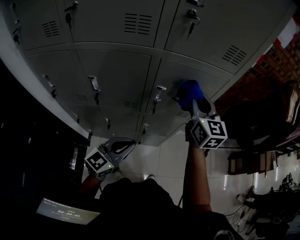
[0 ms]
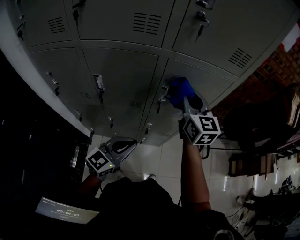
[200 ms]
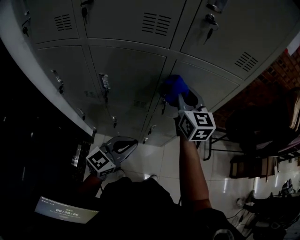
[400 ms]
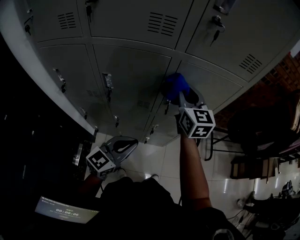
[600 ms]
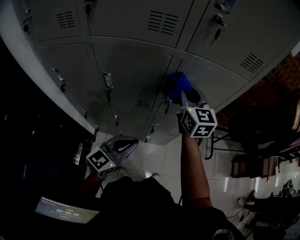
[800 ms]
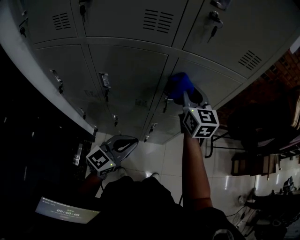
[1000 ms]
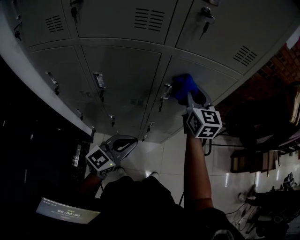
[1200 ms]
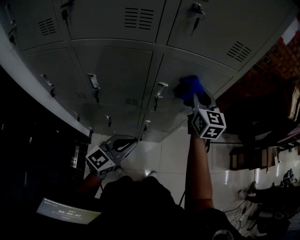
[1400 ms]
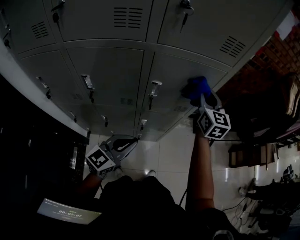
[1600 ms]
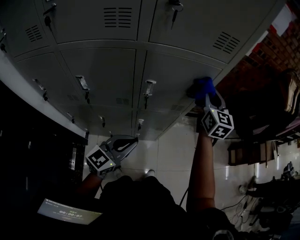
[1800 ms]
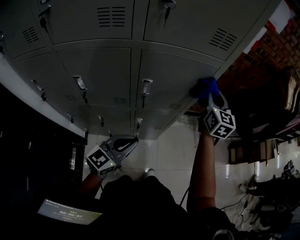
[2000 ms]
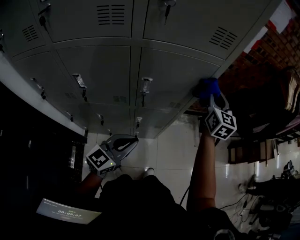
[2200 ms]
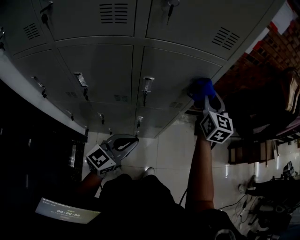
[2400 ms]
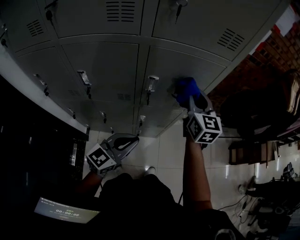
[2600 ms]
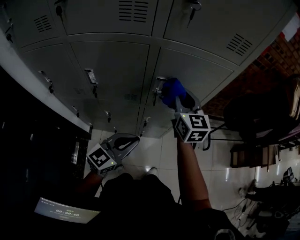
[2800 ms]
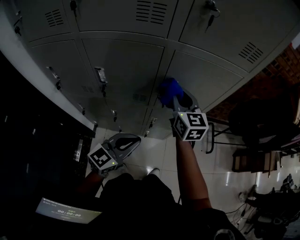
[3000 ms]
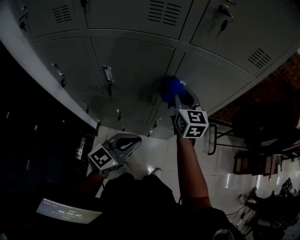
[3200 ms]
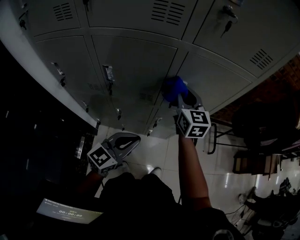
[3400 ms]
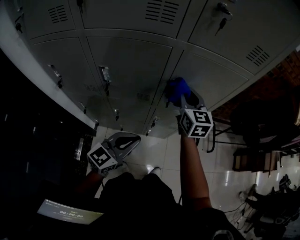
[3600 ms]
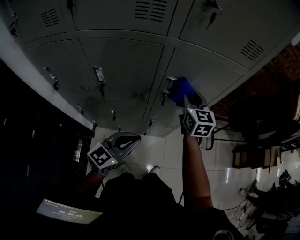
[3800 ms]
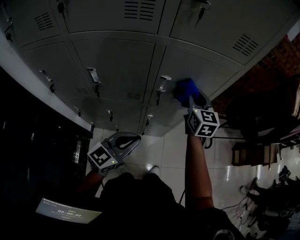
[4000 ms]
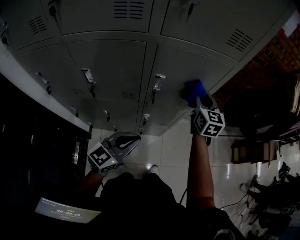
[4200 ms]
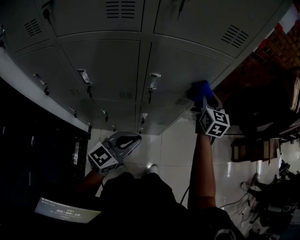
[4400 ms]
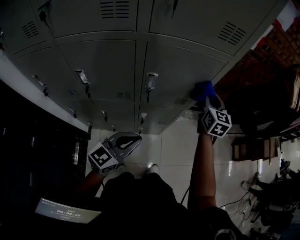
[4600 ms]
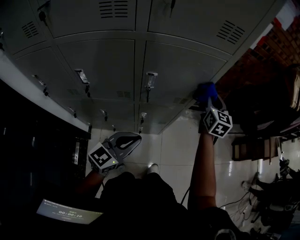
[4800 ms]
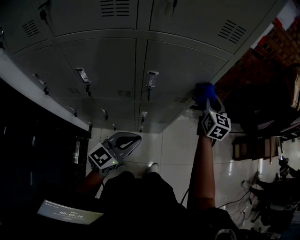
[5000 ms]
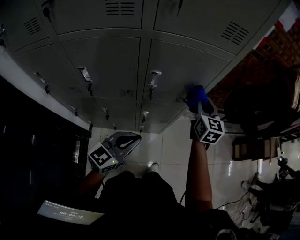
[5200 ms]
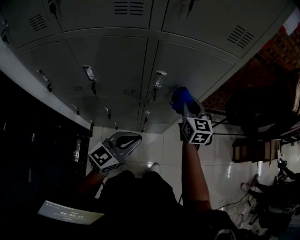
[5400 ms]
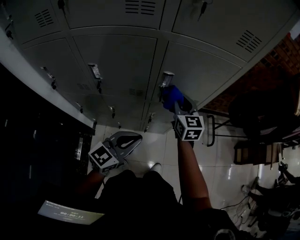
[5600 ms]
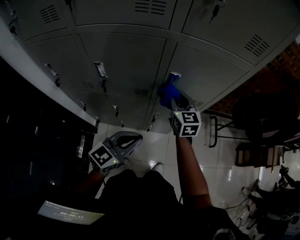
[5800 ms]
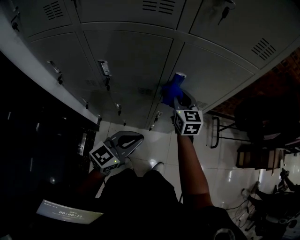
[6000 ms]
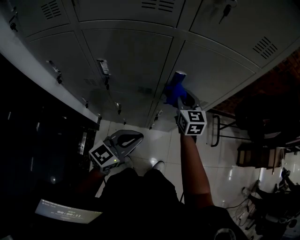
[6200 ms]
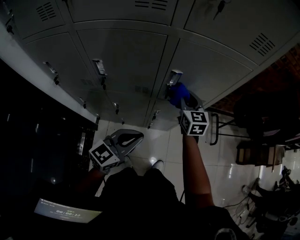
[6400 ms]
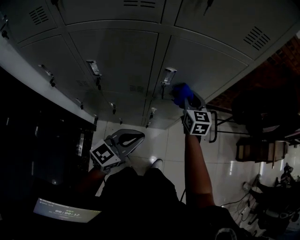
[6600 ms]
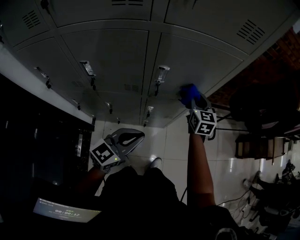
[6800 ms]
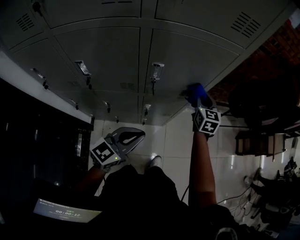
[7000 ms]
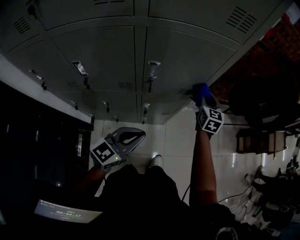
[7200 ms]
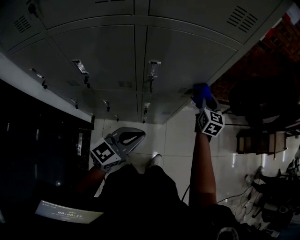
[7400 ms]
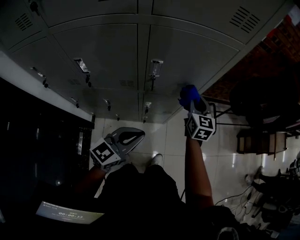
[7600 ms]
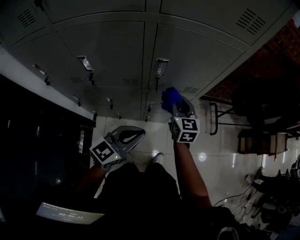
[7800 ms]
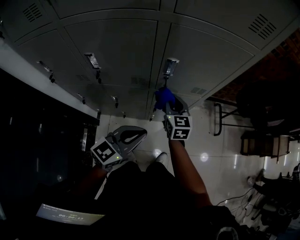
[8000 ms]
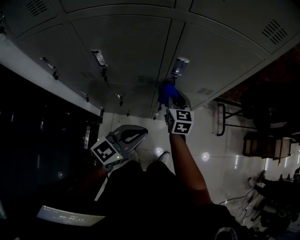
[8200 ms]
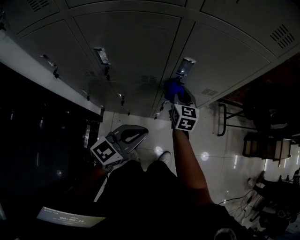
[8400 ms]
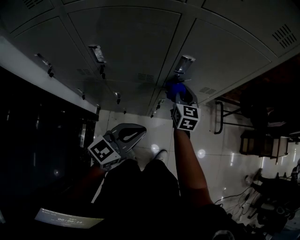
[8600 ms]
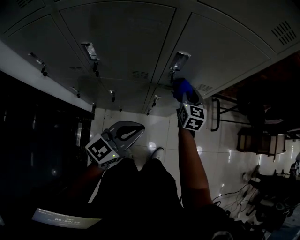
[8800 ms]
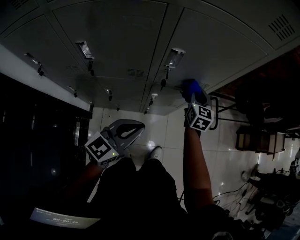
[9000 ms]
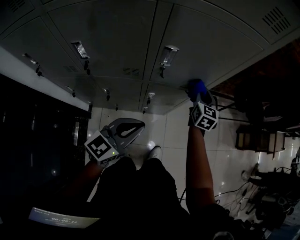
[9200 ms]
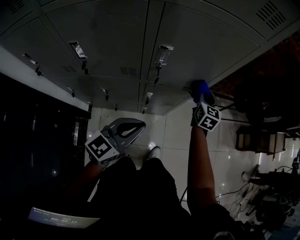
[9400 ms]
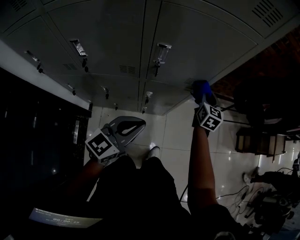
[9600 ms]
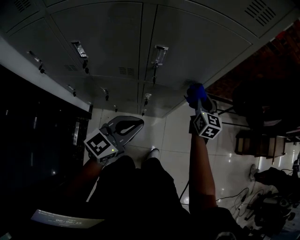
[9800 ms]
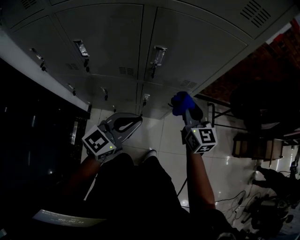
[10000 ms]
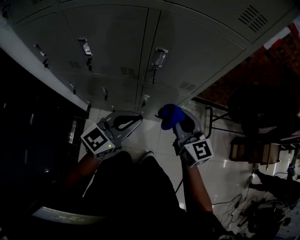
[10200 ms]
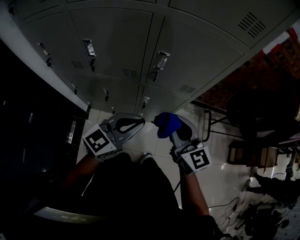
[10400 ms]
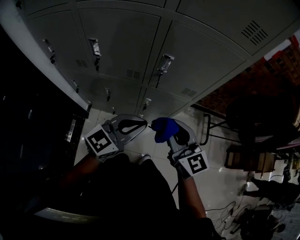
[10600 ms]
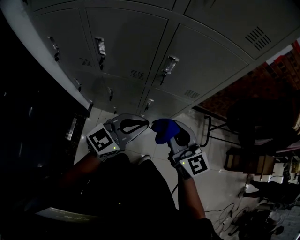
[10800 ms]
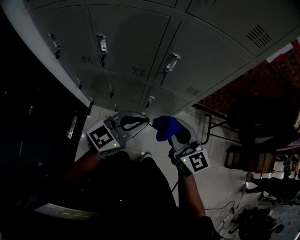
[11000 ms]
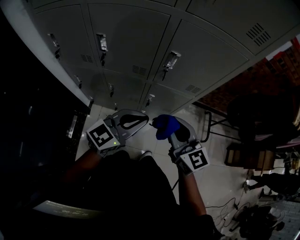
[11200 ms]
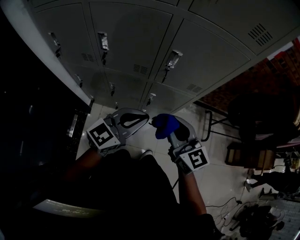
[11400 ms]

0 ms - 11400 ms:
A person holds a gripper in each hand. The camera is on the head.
0 ms - 1400 ms: The right gripper travels to the left and back again, roughly 10 cm each way.
1400 ms - 2800 ms: The right gripper moves about 15 cm to the right and comes back.
2800 ms - 4200 ms: The right gripper goes about 10 cm to the right and forward.
4200 ms - 5600 ms: The right gripper travels to the left, backward and downward by some 15 cm.
5600 ms - 7200 ms: The right gripper is displaced to the right and forward by roughly 20 cm, and rotates some 20 degrees. Meanwhile the left gripper heads to the right, covering roughly 5 cm.
7200 ms - 8600 ms: The left gripper moves to the left, approximately 10 cm. The right gripper shifts approximately 20 cm to the left.
8600 ms - 10000 ms: The right gripper is displaced to the right and upward by approximately 15 cm; the left gripper shifts some 5 cm to the right.
10000 ms - 11400 ms: The left gripper changes place by approximately 5 cm, while the right gripper goes roughly 20 cm backward, to the left and upward.

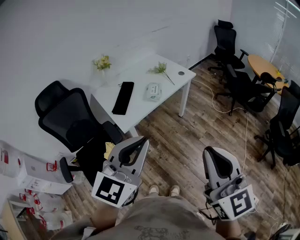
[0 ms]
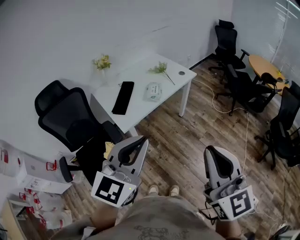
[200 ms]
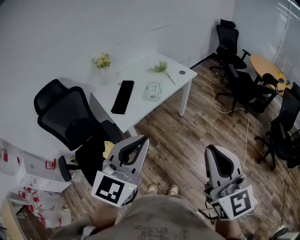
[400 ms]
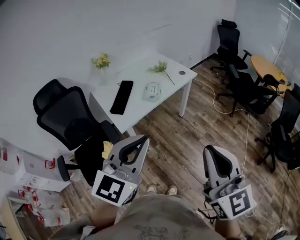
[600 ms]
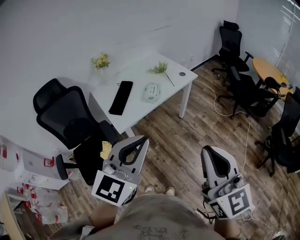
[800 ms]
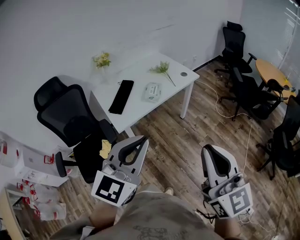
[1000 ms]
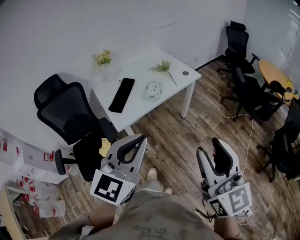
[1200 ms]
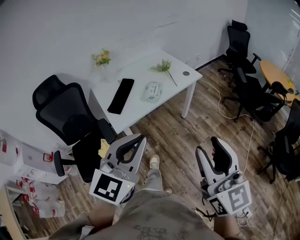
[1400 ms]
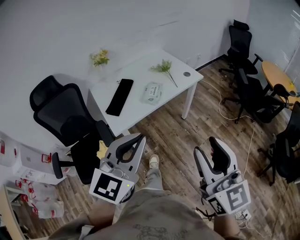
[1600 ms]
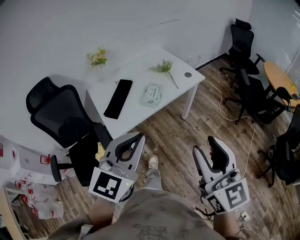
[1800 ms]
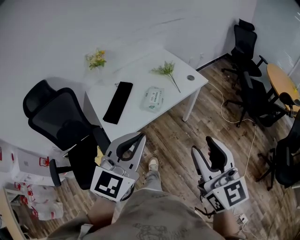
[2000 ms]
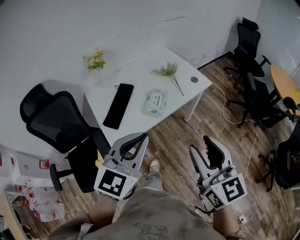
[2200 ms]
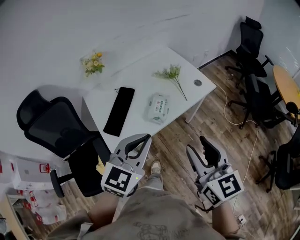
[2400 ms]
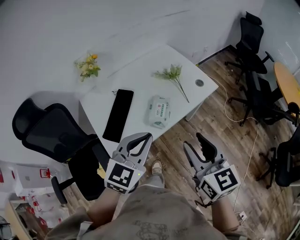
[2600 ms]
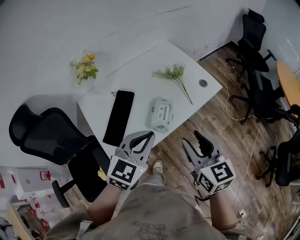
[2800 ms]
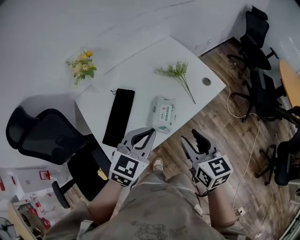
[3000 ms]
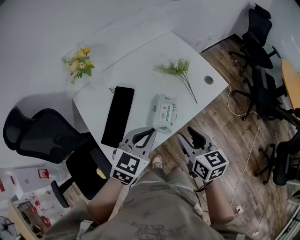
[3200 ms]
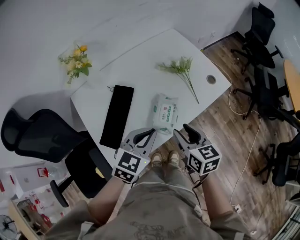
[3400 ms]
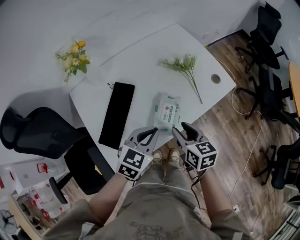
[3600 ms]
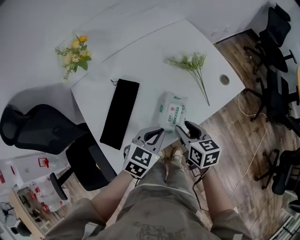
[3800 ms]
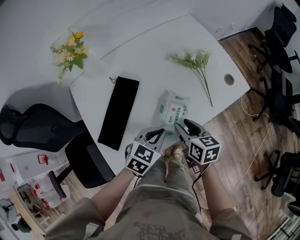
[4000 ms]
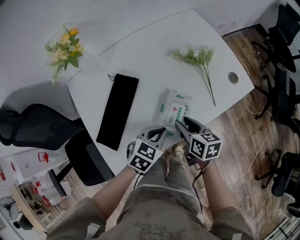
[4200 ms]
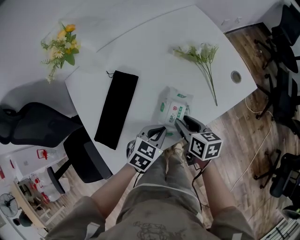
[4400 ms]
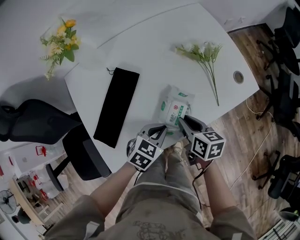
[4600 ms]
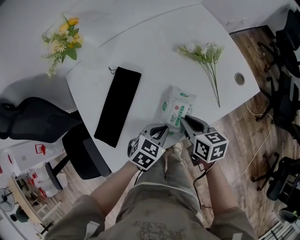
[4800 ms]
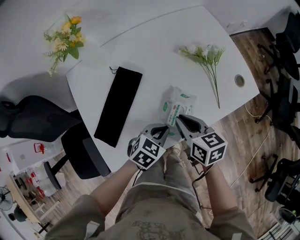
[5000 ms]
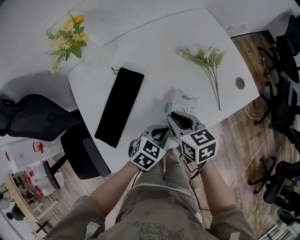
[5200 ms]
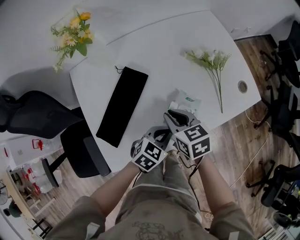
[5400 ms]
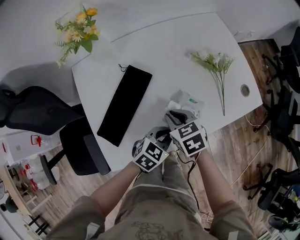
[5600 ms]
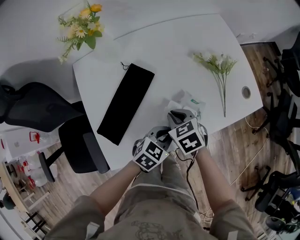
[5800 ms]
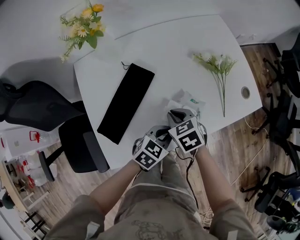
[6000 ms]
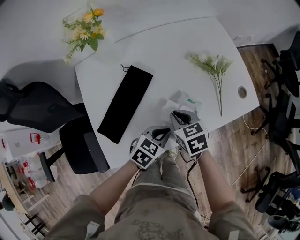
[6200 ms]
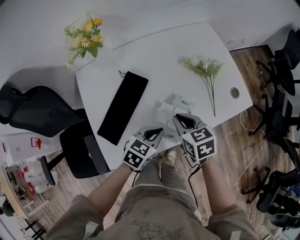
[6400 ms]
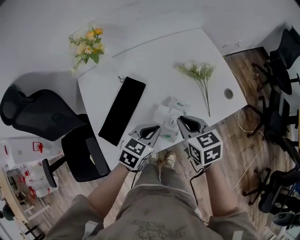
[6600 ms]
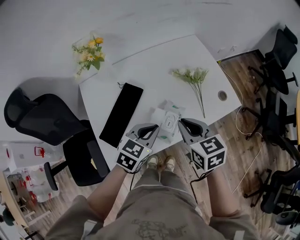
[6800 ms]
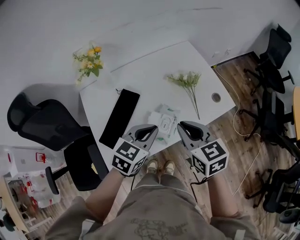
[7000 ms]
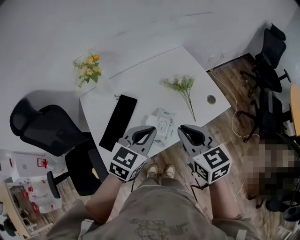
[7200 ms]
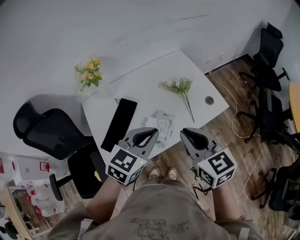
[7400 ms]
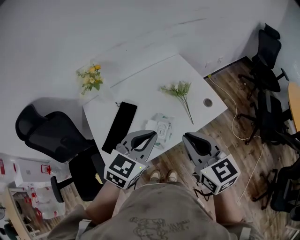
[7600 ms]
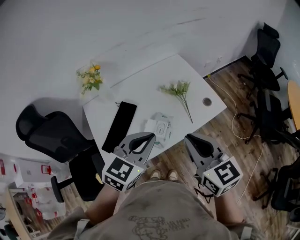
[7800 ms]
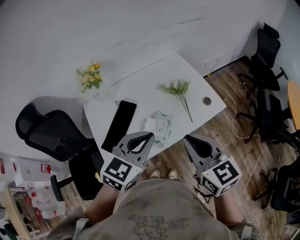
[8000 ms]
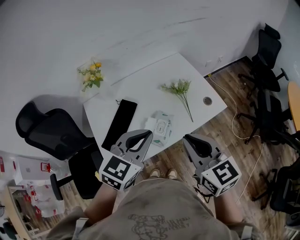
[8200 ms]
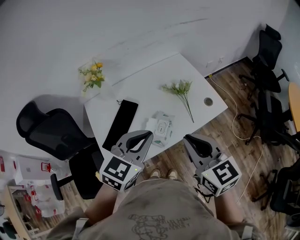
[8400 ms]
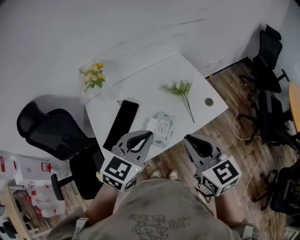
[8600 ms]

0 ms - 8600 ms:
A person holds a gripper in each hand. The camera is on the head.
0 ms - 1400 ms: The right gripper travels forward and to the right by some 10 cm, and opens up. Meanwhile the left gripper is displaced forward by about 5 cm.
1400 ms - 2800 ms: Both grippers travel together forward and downward, approximately 40 cm. The right gripper changes its angle by about 30 degrees.
2800 ms - 4400 ms: The left gripper moves downward, approximately 25 cm, and rotates some 30 degrees. The right gripper travels downward and forward by about 30 cm, and rotates about 40 degrees.
4400 ms - 5800 ms: The right gripper moves to the left, about 10 cm, twists approximately 40 degrees counterclockwise, seen from behind, and closes.
5800 ms - 7200 ms: The right gripper goes roughly 30 cm upward and to the right, and rotates about 30 degrees, while the left gripper heads upward, covering about 25 cm, and swivels roughly 20 degrees.
7200 ms - 8600 ms: The right gripper heads backward and upward, covering some 10 cm; the left gripper travels upward by about 5 cm.

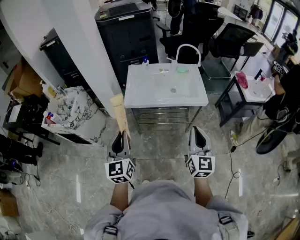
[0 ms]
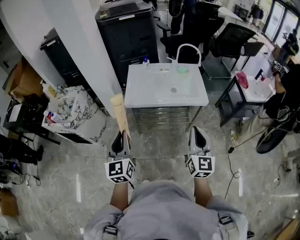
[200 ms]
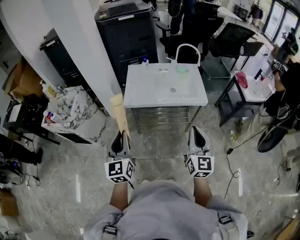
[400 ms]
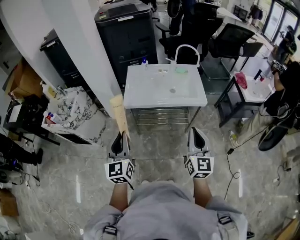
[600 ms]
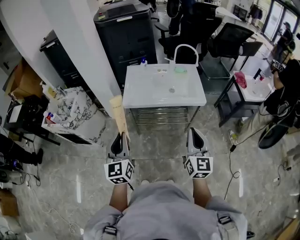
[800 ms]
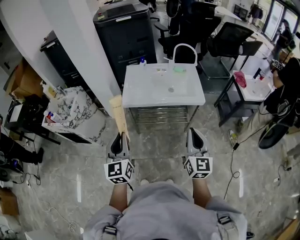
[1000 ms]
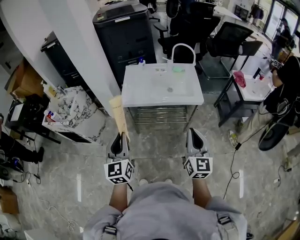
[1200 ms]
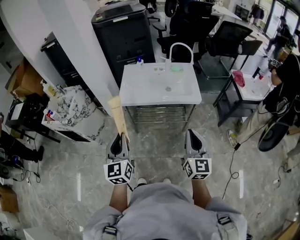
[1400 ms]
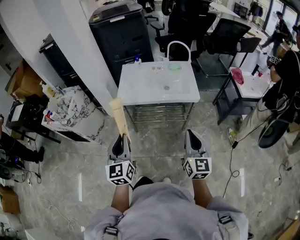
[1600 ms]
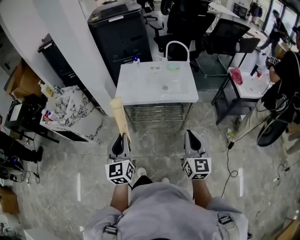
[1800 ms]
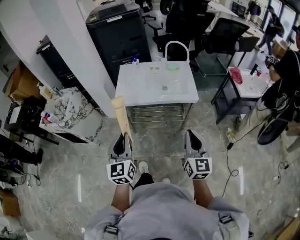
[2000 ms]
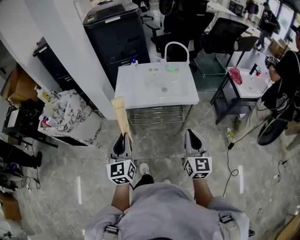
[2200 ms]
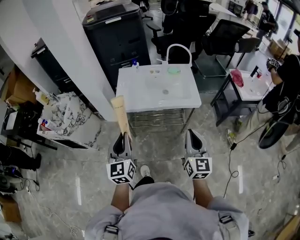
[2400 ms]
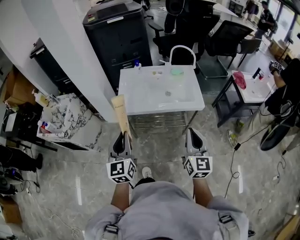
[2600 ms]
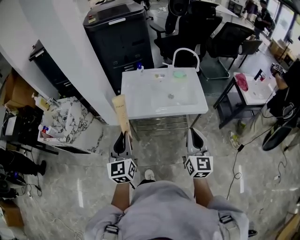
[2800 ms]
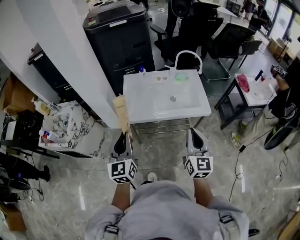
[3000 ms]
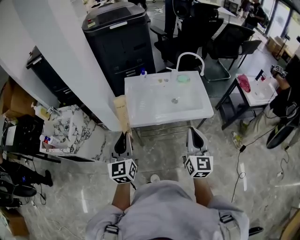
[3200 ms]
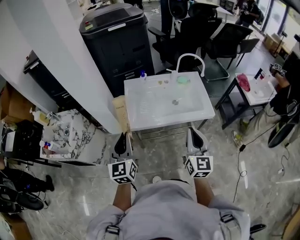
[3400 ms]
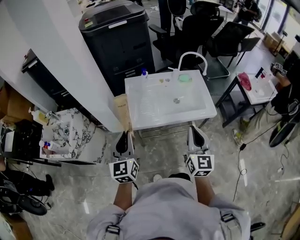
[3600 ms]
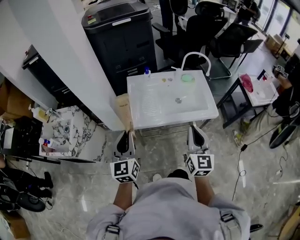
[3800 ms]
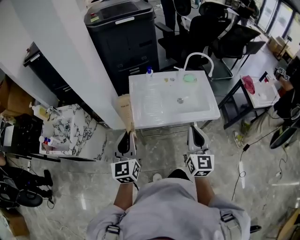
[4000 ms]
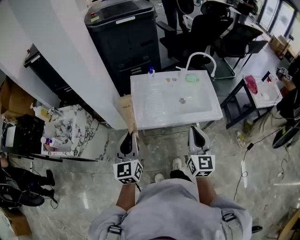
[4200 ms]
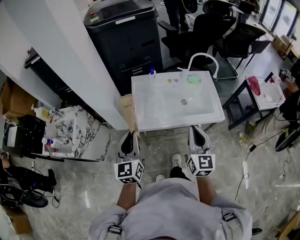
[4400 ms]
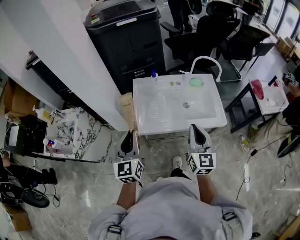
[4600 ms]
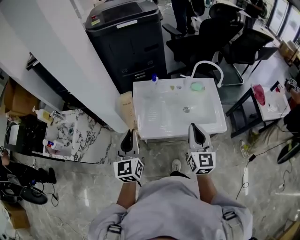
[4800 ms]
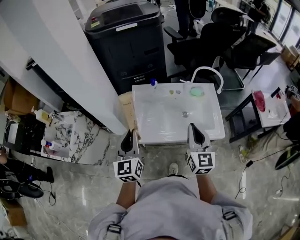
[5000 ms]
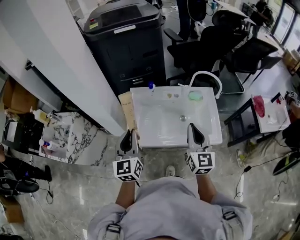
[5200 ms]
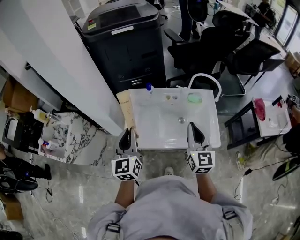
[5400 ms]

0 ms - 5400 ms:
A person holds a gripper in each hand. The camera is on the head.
0 ms - 1400 ms: The grippers both shift to the right by some 5 cm.
1400 ms - 2800 ms: The grippers both shift forward by approximately 15 cm.
2800 ms - 4000 ms: The left gripper goes approximately 15 cm forward and to the left. The right gripper goes some 15 cm to the left and forward.
4000 ms - 5400 ms: The grippers both shift forward and to the right by approximately 20 cm.
